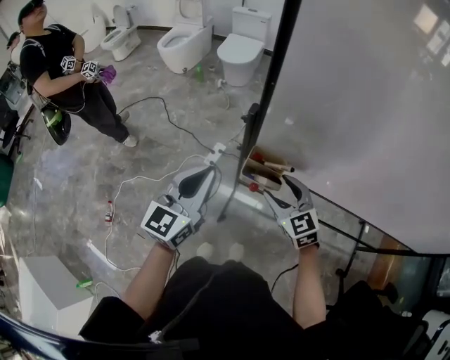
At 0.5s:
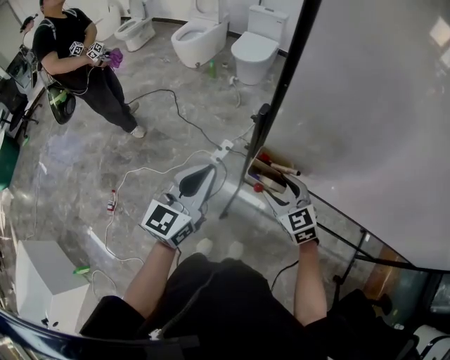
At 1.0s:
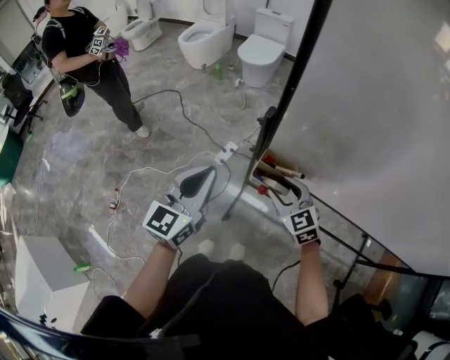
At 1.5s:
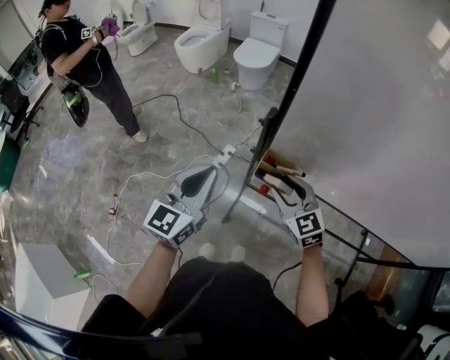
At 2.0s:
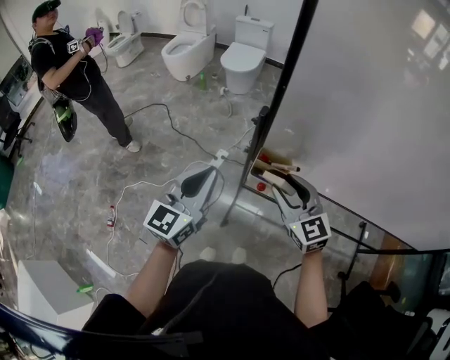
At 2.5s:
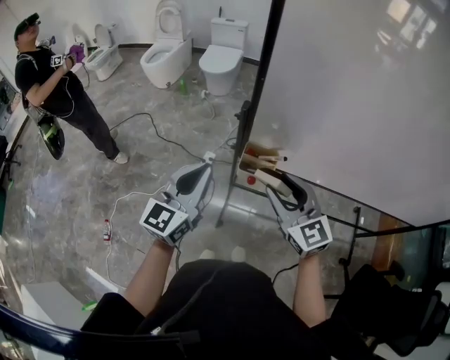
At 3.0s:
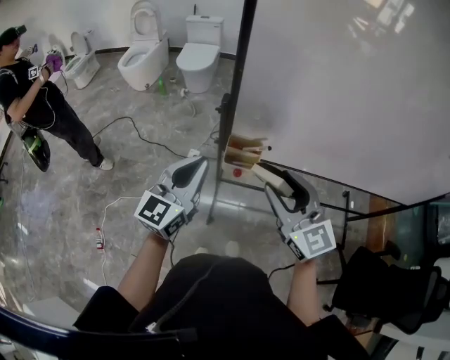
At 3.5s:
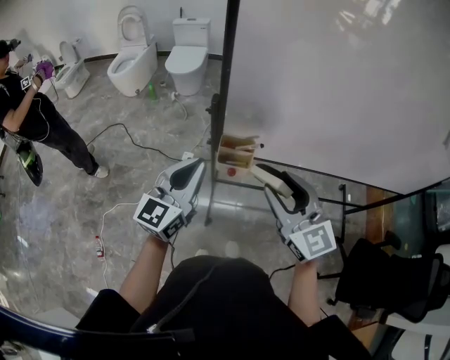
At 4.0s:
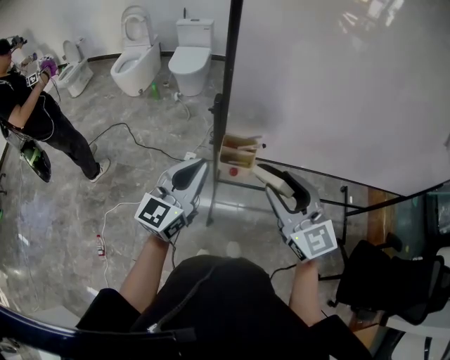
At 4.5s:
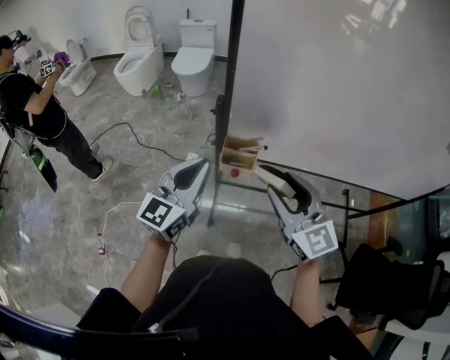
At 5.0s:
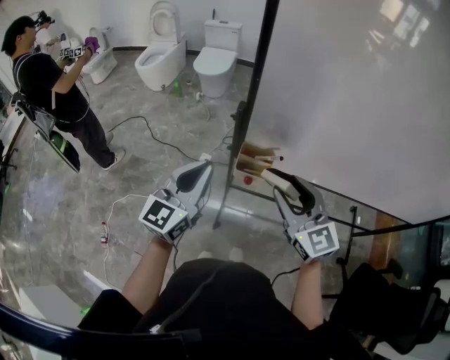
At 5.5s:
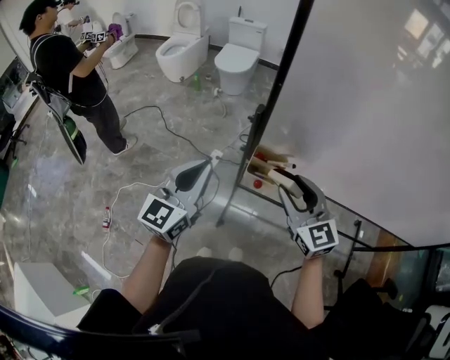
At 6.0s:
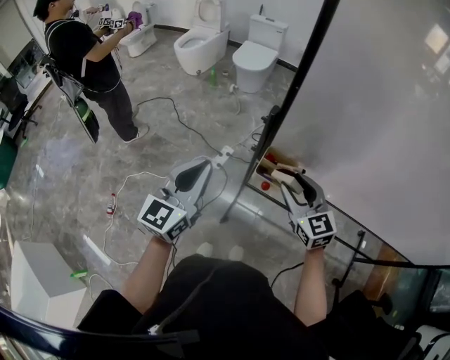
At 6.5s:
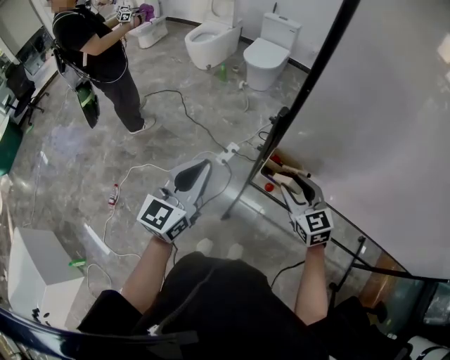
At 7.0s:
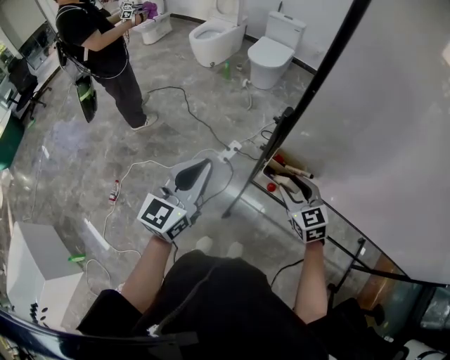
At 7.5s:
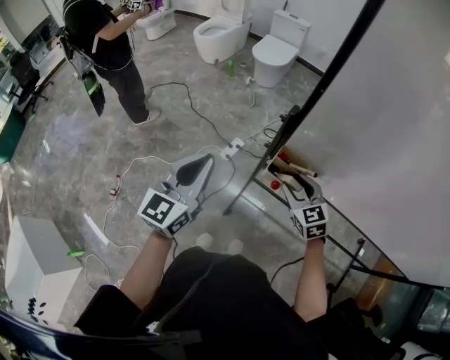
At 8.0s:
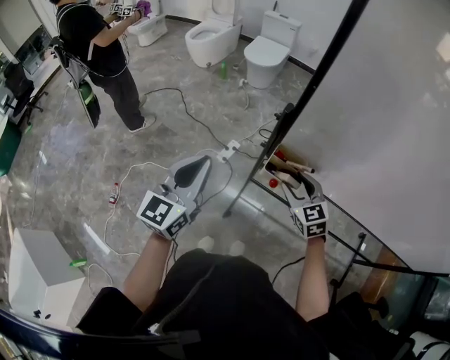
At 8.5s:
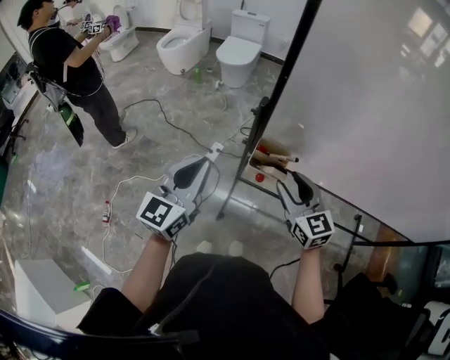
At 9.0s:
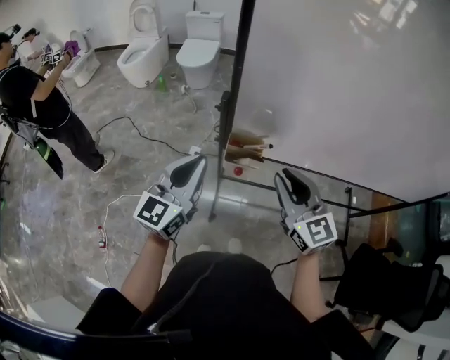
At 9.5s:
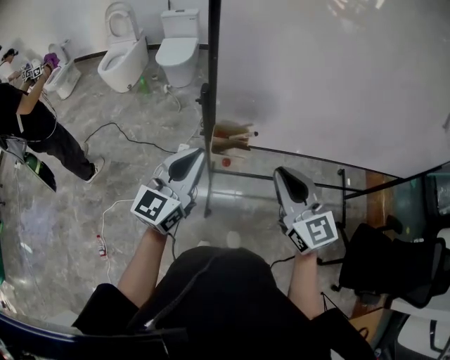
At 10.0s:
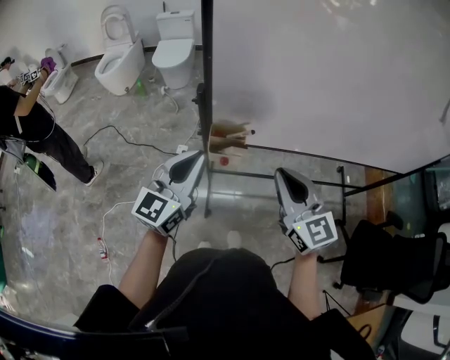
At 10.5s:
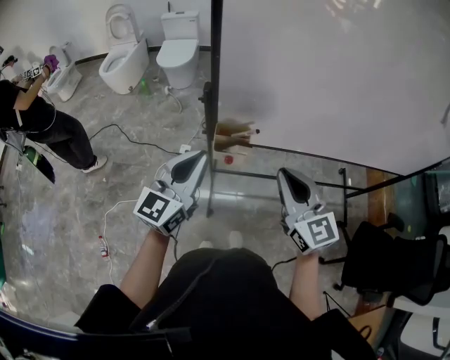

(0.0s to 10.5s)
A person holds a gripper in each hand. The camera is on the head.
0.0s - 2.0s: The right gripper shifts roughly 5 cm upward.
2.0s - 4.0s: The right gripper goes roughly 15 cm backward and upward. The left gripper is displaced to the right by about 5 cm.
4.0s - 6.5s: The right gripper heads downward and forward, covering approximately 20 cm, and rotates approximately 30 degrees; the left gripper goes approximately 10 cm to the left, and rotates some 20 degrees.
6.5s - 8.5s: The right gripper changes place by roughly 5 cm.
8.5s - 10.5s: The right gripper moves backward, upward and to the right, about 15 cm, and closes up, while the left gripper goes approximately 10 cm to the right.

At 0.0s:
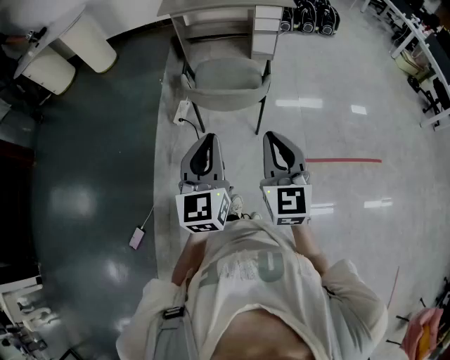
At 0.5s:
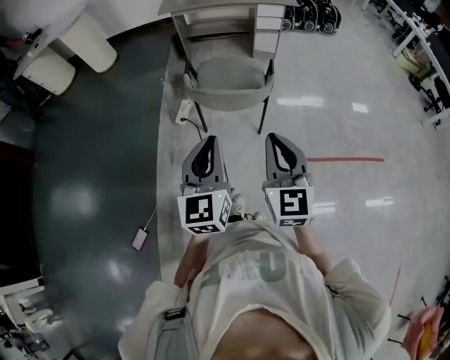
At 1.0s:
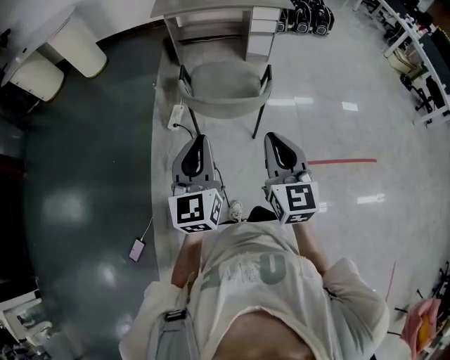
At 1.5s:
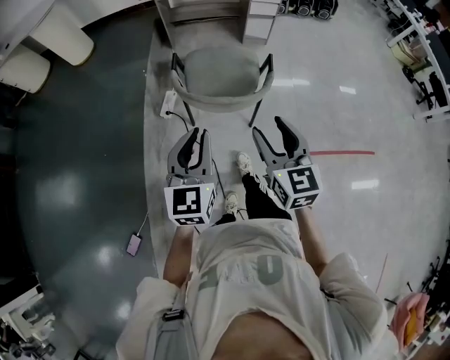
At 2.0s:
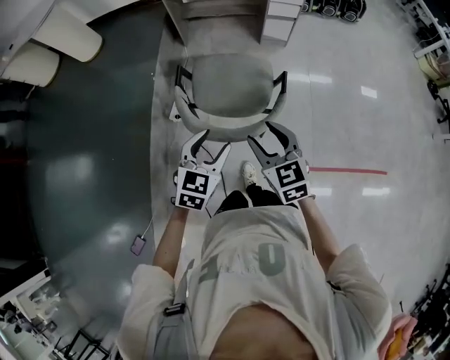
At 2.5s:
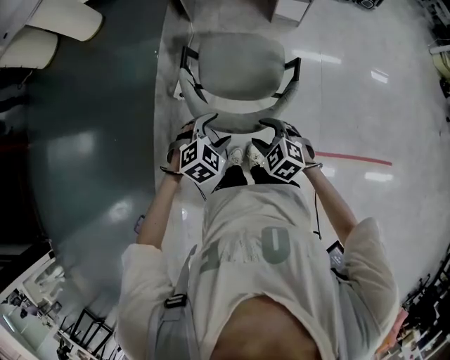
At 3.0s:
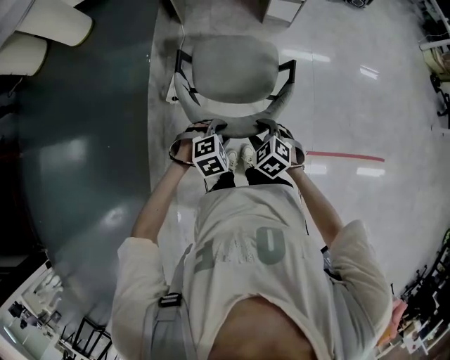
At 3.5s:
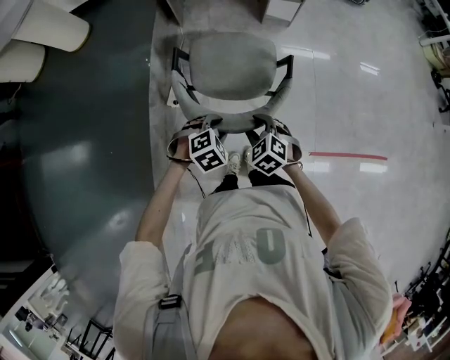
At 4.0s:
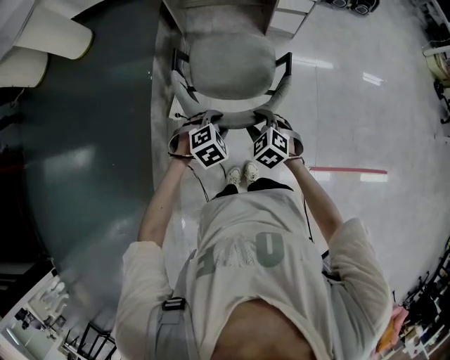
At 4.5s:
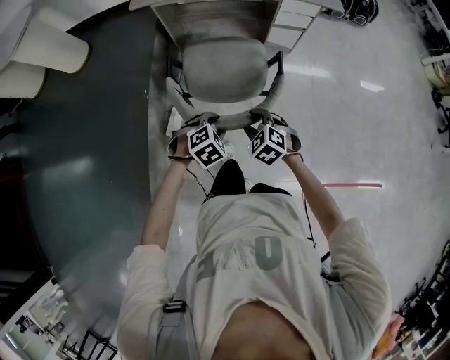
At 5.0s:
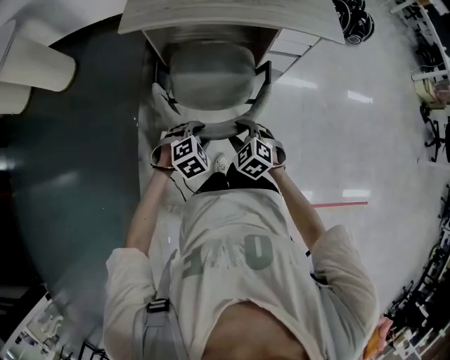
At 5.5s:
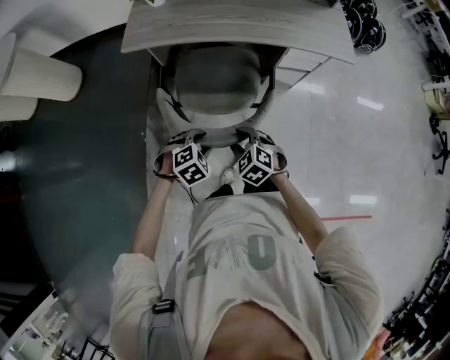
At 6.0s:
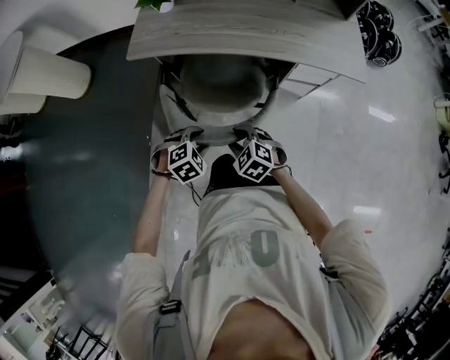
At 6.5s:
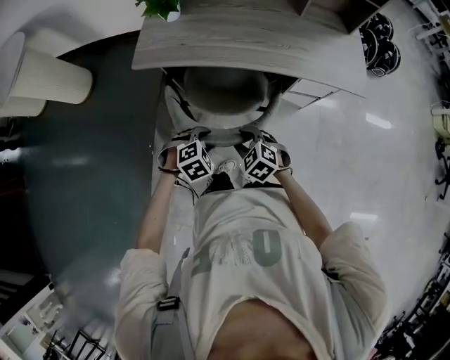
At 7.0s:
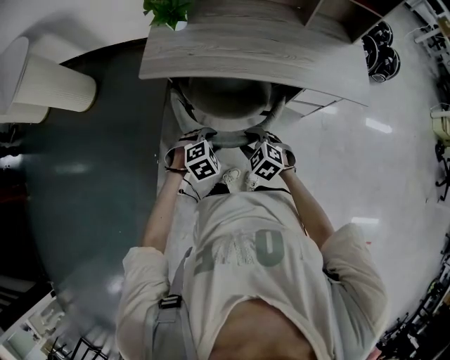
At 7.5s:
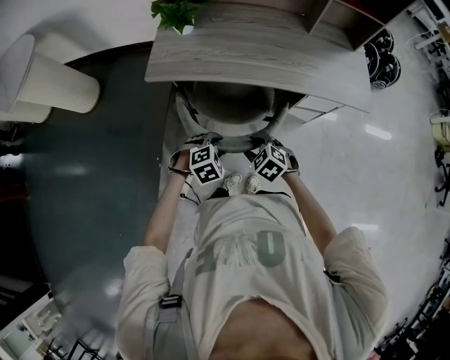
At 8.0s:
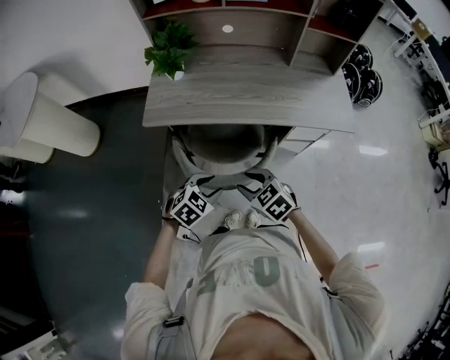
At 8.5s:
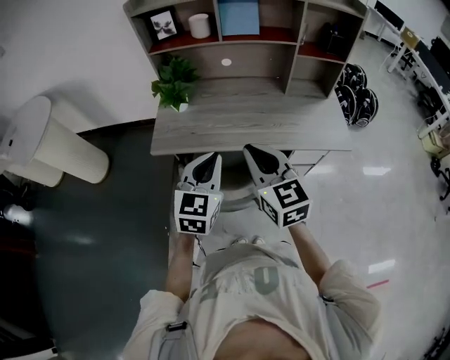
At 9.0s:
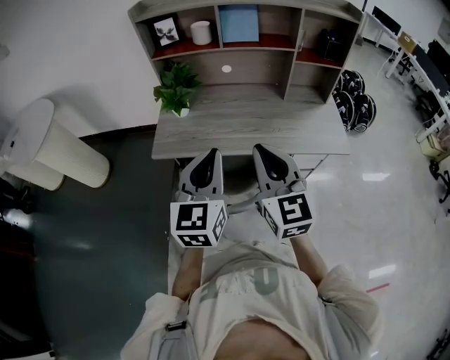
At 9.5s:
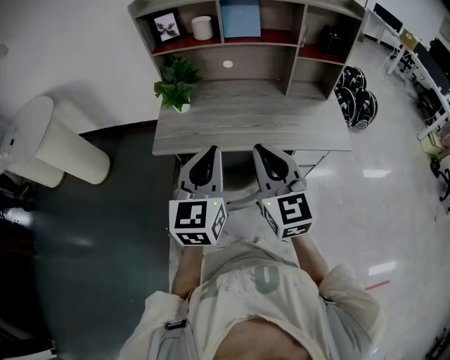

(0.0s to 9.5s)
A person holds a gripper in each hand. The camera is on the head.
0.0s - 2.0s: Both grippers travel together downward, about 10 cm. The left gripper rotates some 30 degrees, and opens up; the right gripper rotates about 30 degrees, and opens up.
2.0s - 4.0s: The two grippers go about 10 cm downward. The left gripper tilts its fingers about 30 degrees downward; the right gripper changes its angle by about 40 degrees.
4.0s - 5.5s: The grippers make only small movements.
5.5s - 7.5s: Both grippers travel together forward, about 10 cm.
7.5s - 9.5s: The grippers both shift upward by about 40 cm. The right gripper tilts its fingers some 60 degrees upward, and closes its fingers, while the left gripper tips its fingers upward by approximately 60 degrees, and closes.

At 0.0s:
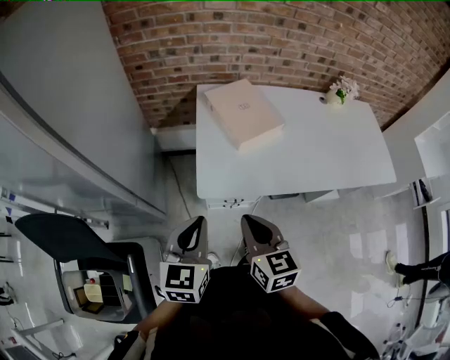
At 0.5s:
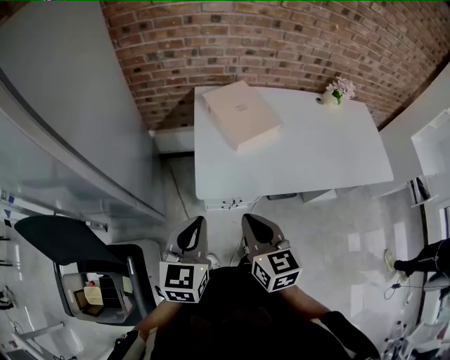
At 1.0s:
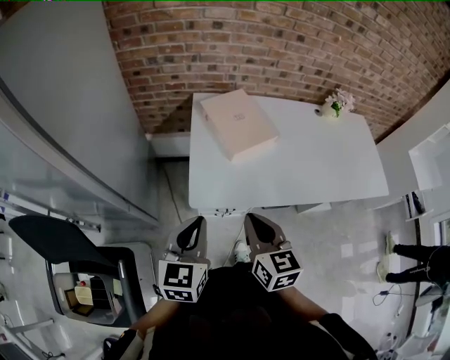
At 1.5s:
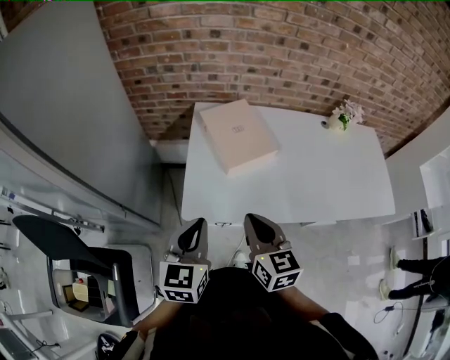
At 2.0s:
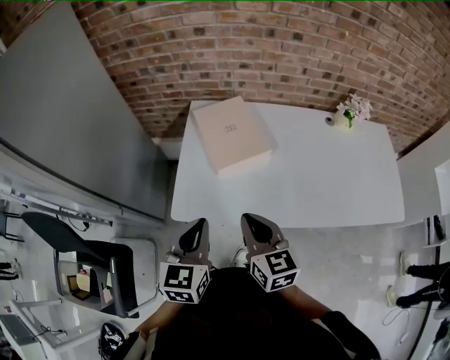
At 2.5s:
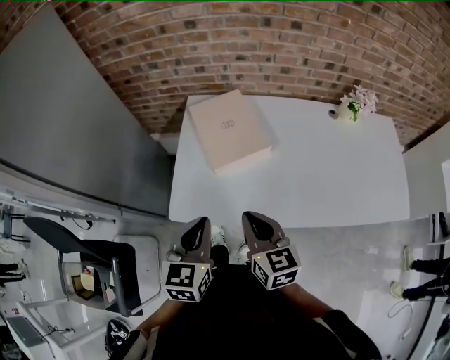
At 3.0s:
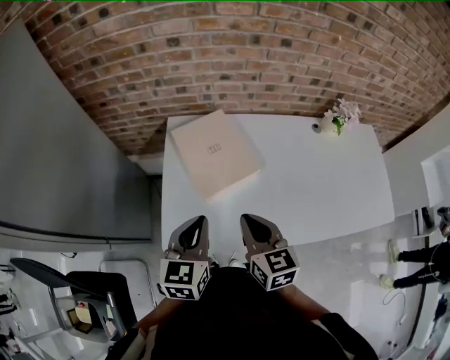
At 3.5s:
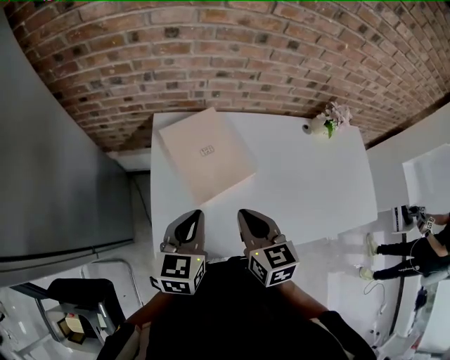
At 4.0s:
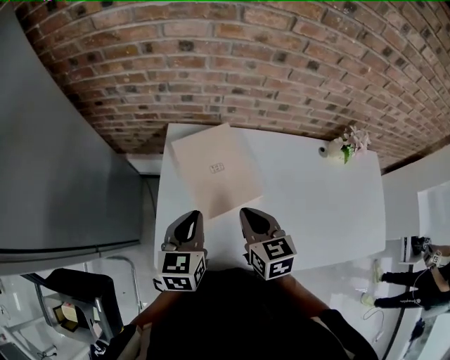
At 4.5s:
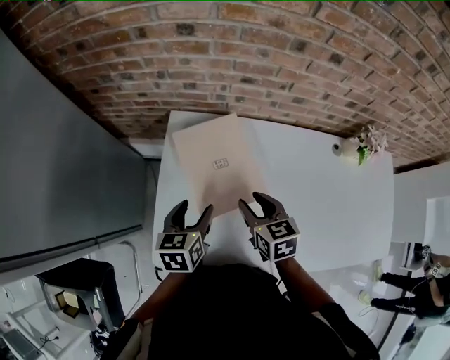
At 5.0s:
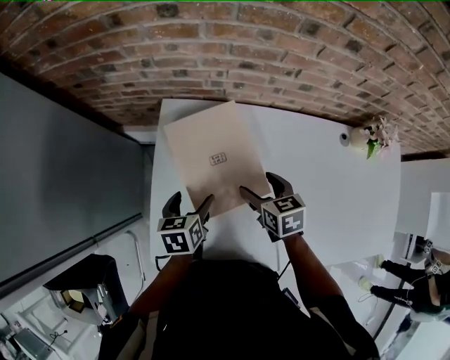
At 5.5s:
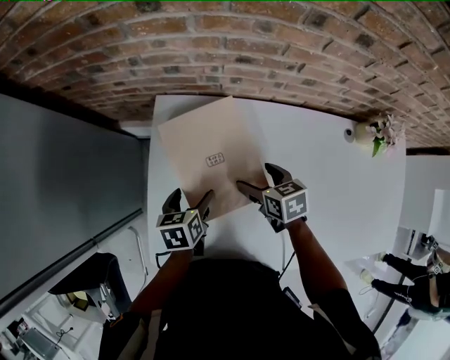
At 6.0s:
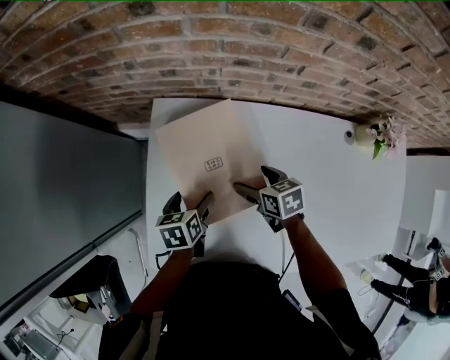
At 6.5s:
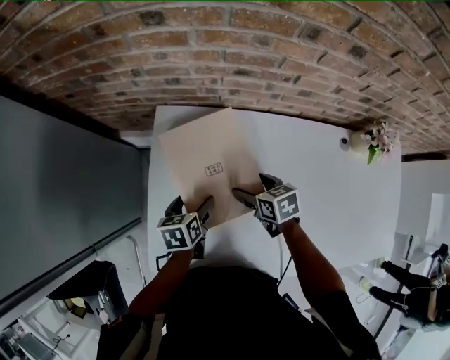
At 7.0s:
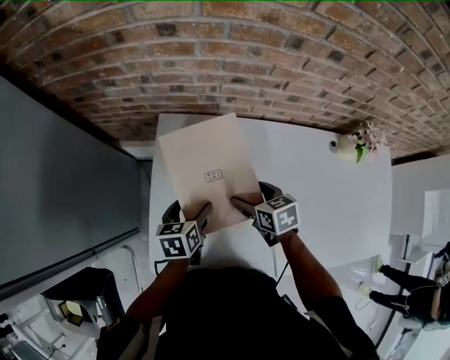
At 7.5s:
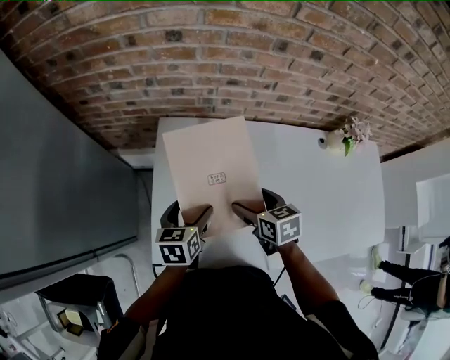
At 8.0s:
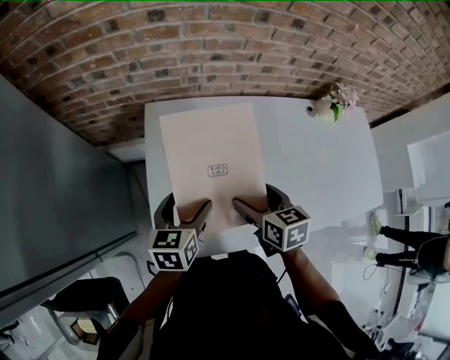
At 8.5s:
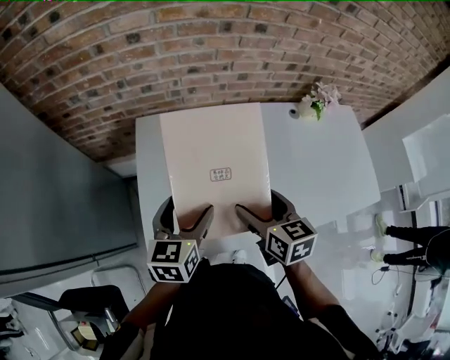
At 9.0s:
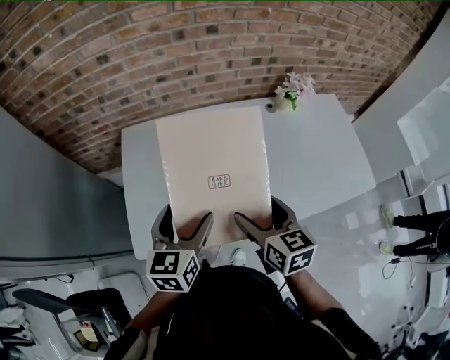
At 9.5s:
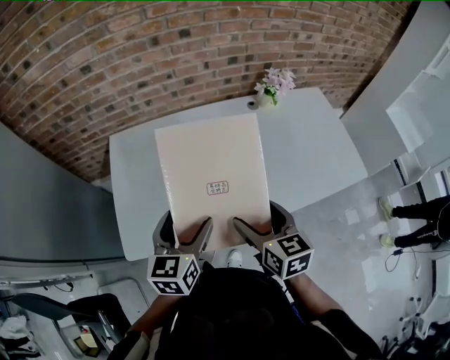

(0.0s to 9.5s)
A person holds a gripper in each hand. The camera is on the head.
0.0s - 2.0s: Both grippers travel together to the right and forward, roughly 15 cm.
2.0s - 4.0s: Both grippers travel together forward, approximately 20 cm.
4.0s - 5.5s: The grippers both shift downward and forward by approximately 20 cm. The left gripper swivels approximately 30 degrees, and opens its fingers, while the right gripper rotates about 30 degrees, and opens up.
5.5s - 7.5s: The left gripper is displaced upward by about 10 cm. Meanwhile the right gripper travels upward and backward by roughly 10 cm.
7.5s - 9.5s: The left gripper moves to the right, backward and upward, roughly 30 cm, and changes its angle by roughly 20 degrees, while the right gripper heads backward, to the right and upward, covering some 30 cm, and rotates some 30 degrees.
